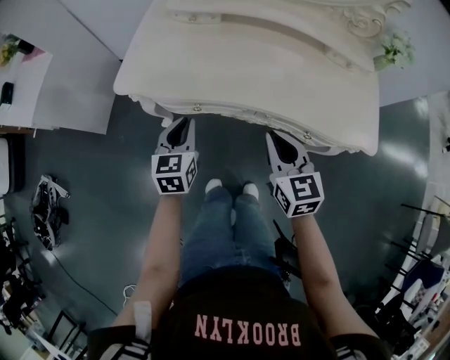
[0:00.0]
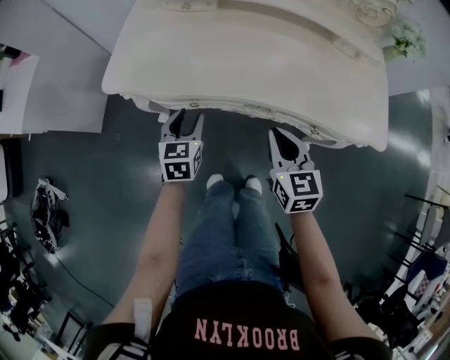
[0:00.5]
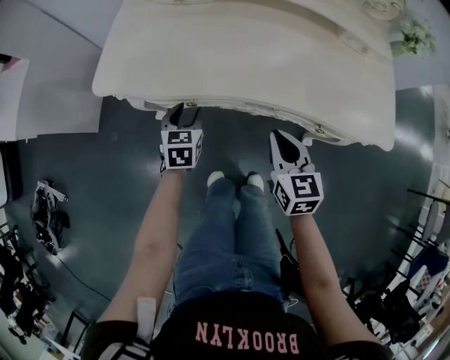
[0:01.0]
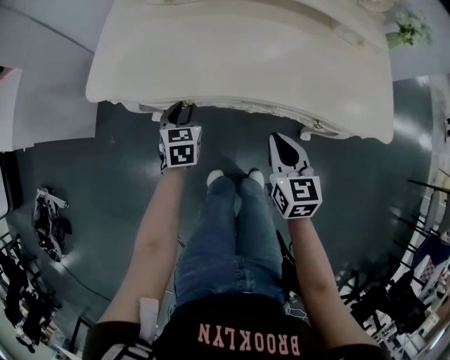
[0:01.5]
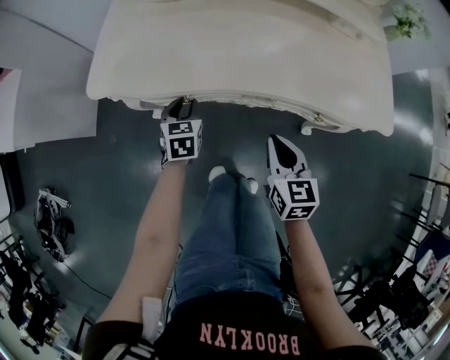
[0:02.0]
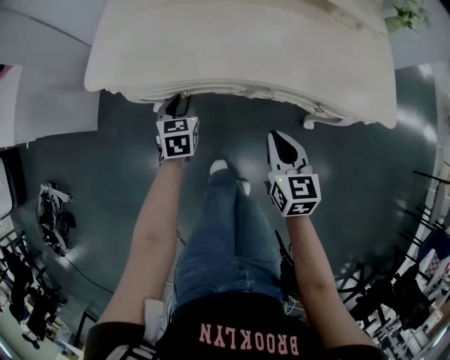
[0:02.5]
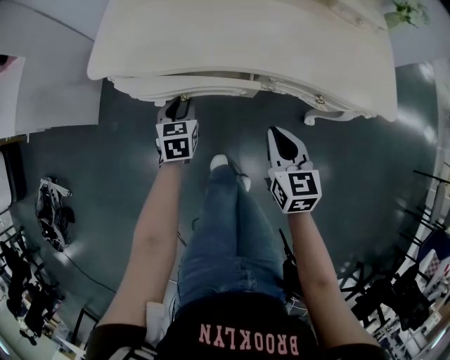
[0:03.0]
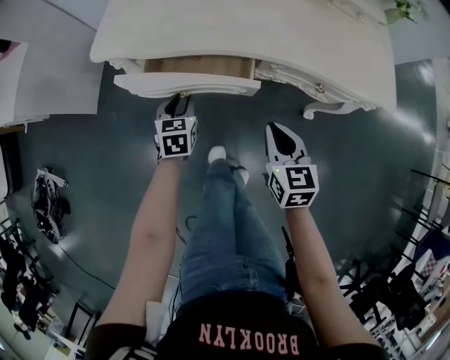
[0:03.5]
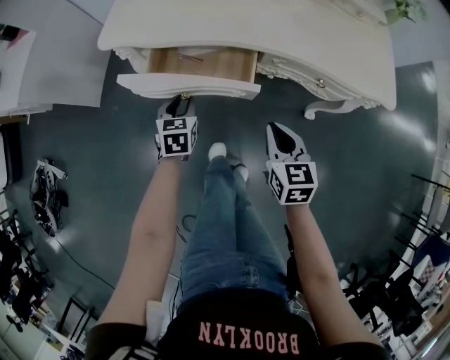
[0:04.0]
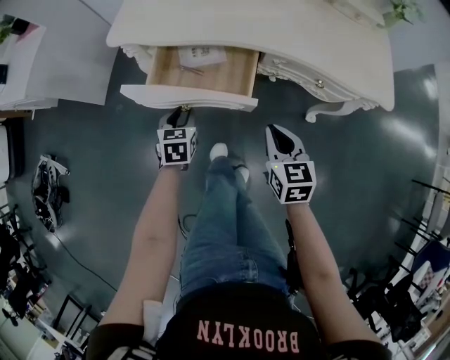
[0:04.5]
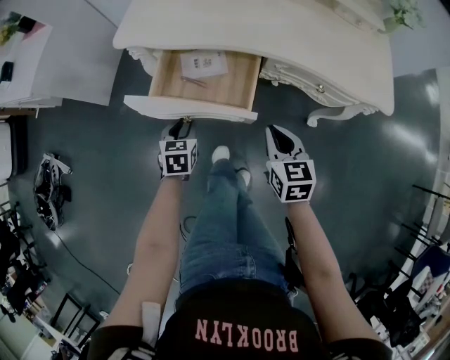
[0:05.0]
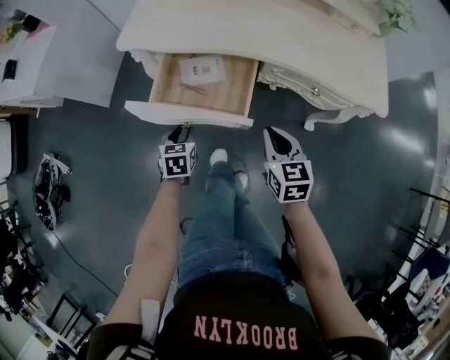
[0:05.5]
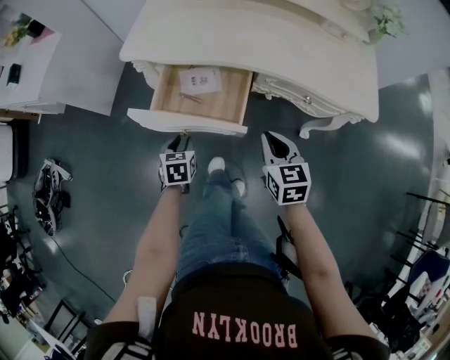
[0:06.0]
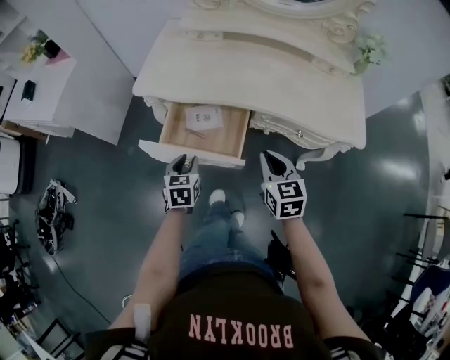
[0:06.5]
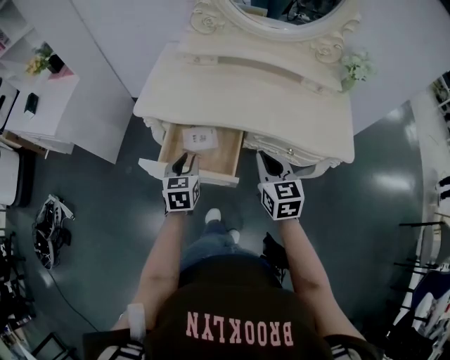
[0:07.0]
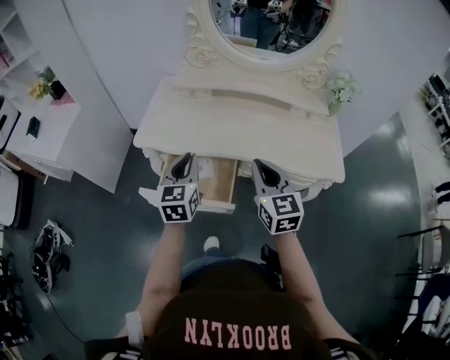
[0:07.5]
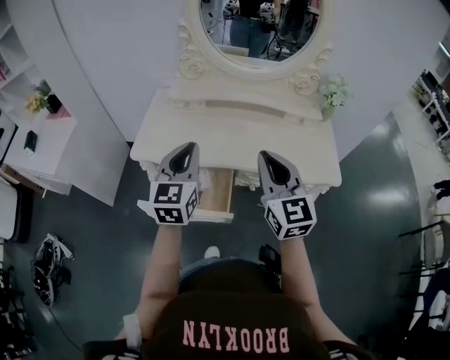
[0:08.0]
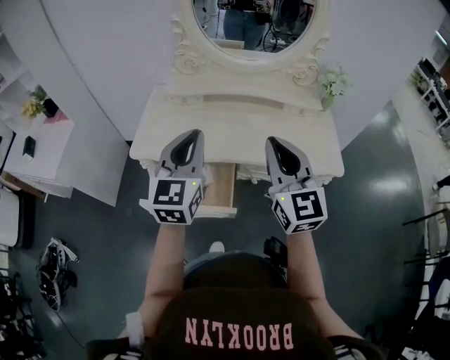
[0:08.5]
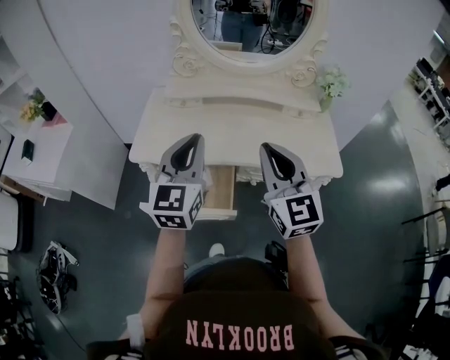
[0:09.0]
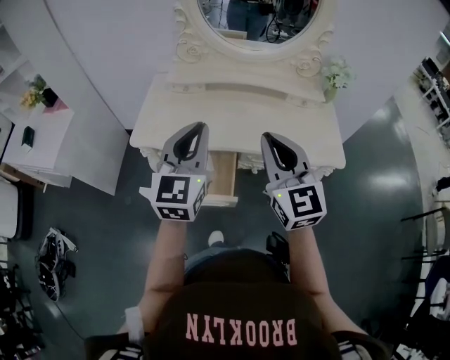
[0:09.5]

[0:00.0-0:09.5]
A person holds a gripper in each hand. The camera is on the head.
0:00.0 to 0:02.0: The left gripper is displaced downward and forward by about 15 cm, and opens up, while the right gripper heads downward, covering some 10 cm.
0:02.0 to 0:04.0: Both grippers travel together backward, some 10 cm.
0:04.0 to 0:05.5: The left gripper goes approximately 10 cm backward.
0:05.5 to 0:07.5: Both grippers move upward, approximately 25 cm. The right gripper turns by about 20 degrees; the left gripper tilts its fingers approximately 40 degrees upward.
0:07.5 to 0:09.5: Both grippers travel together upward, some 15 cm. The left gripper swivels roughly 20 degrees.

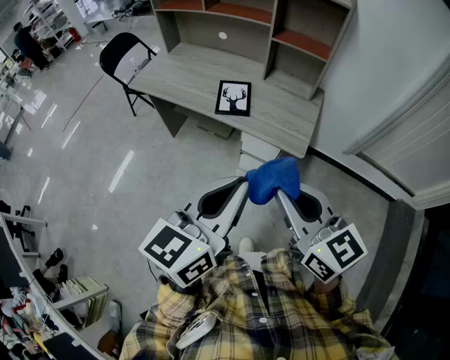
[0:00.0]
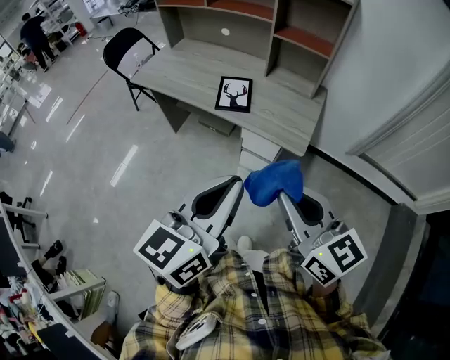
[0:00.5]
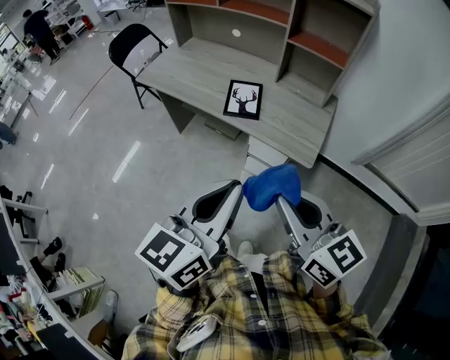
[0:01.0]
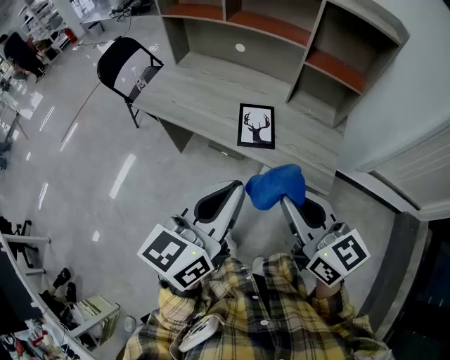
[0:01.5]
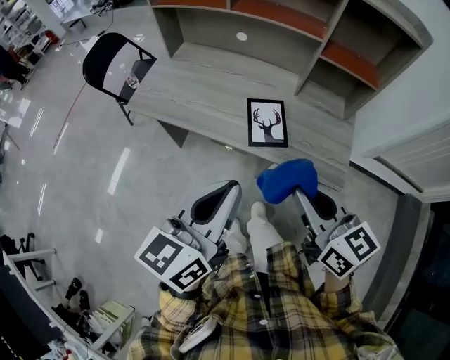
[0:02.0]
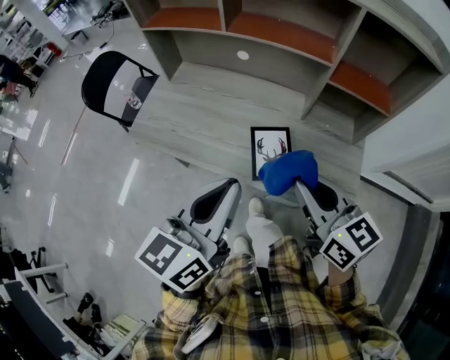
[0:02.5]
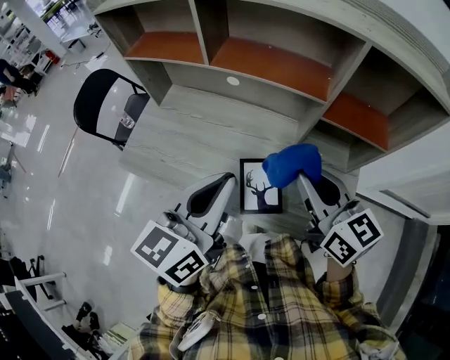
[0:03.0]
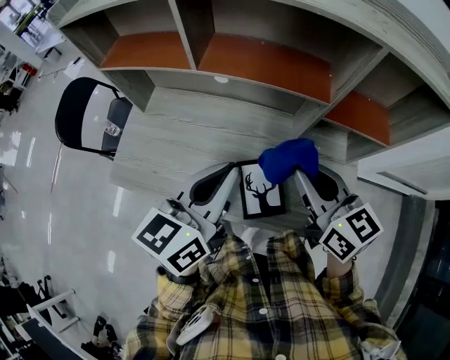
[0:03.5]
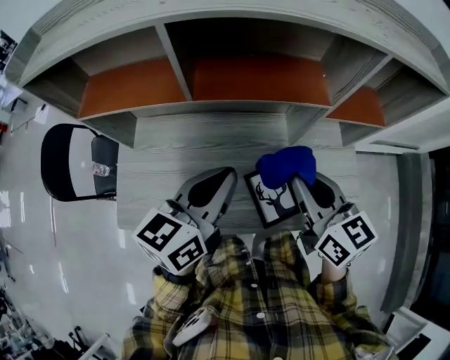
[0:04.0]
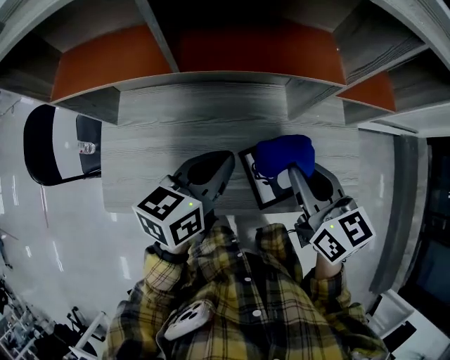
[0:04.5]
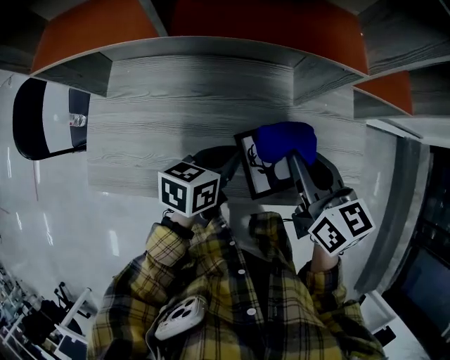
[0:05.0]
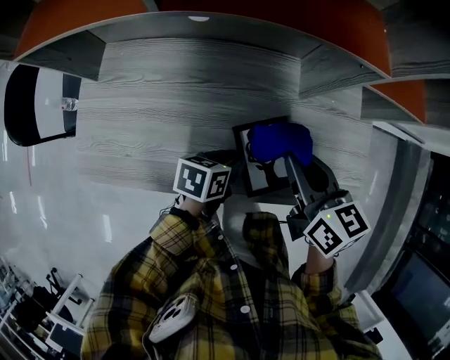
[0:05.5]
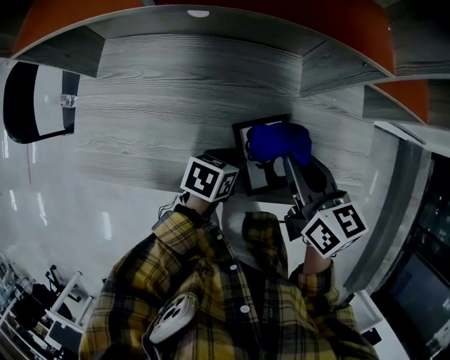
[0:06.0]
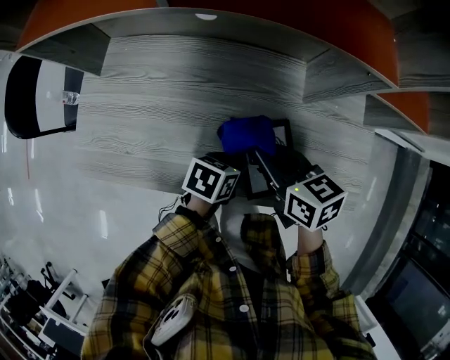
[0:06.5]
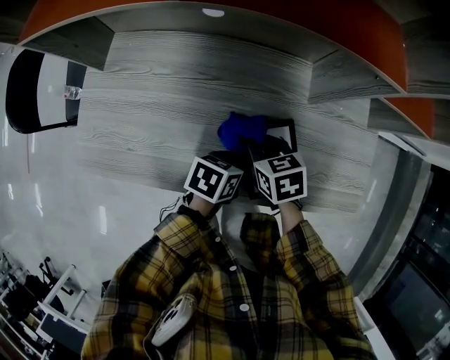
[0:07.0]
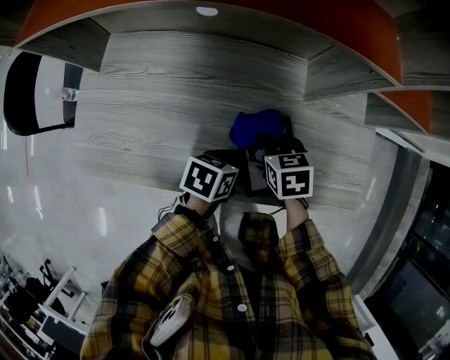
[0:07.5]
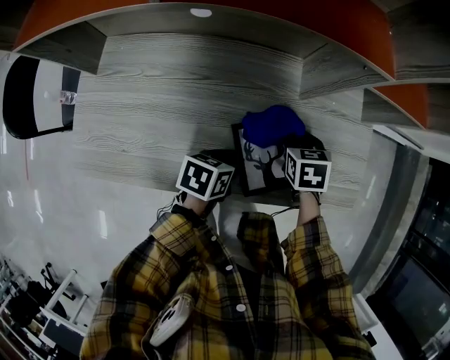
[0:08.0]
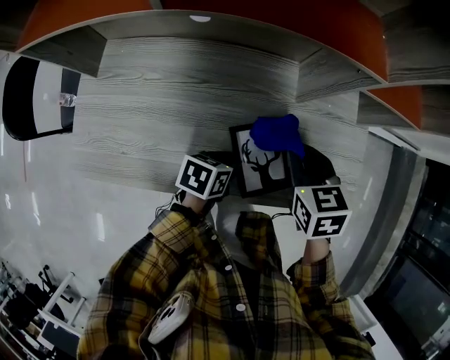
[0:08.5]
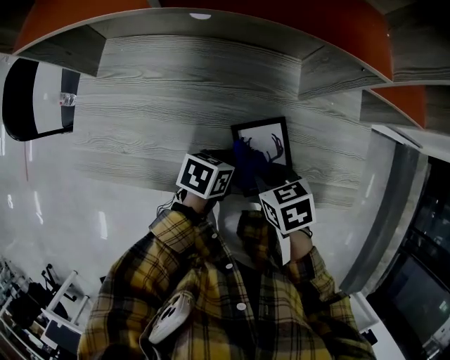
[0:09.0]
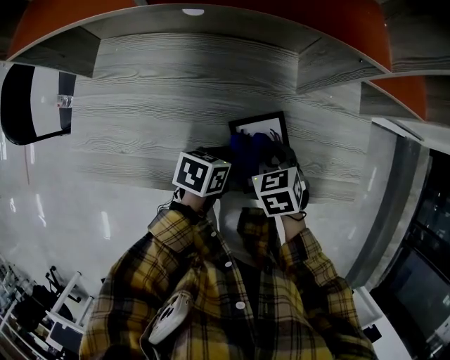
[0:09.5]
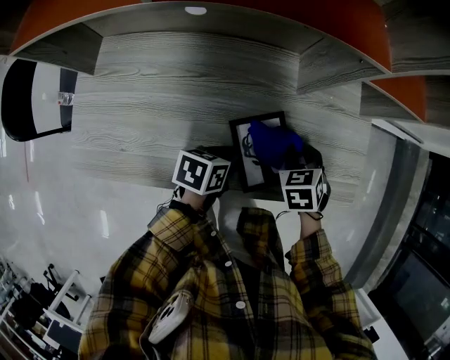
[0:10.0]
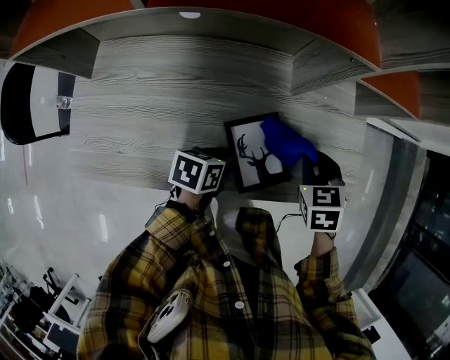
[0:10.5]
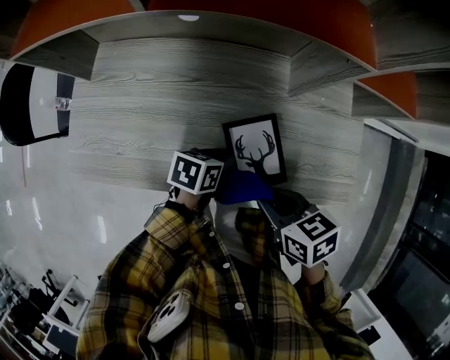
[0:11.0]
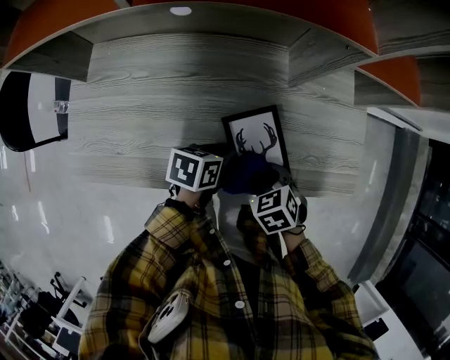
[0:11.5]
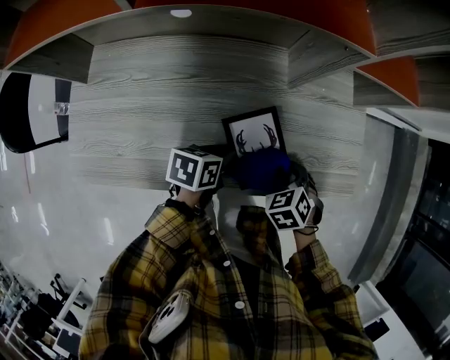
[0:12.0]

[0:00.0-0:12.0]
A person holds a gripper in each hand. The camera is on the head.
0:00.0 to 0:02.0: Both grippers move forward and to the left, some 30 cm.
0:02.0 to 0:04.0: The right gripper shifts by some 35 cm, and turns by roughly 20 degrees. Meanwhile the left gripper shifts by roughly 40 cm, and rotates some 30 degrees.
0:04.0 to 0:06.0: The left gripper heads downward, covering roughly 35 cm, points its fingers approximately 40 degrees further downward, and opens its fingers; the right gripper goes some 15 cm downward.
0:06.0 to 0:08.0: The right gripper heads downward, covering about 15 cm, and points its fingers some 30 degrees further downward.
0:08.0 to 0:10.0: The right gripper moves about 10 cm upward and comes back.
0:10.0 to 0:12.0: The right gripper reaches roughly 10 cm upward, then returns.

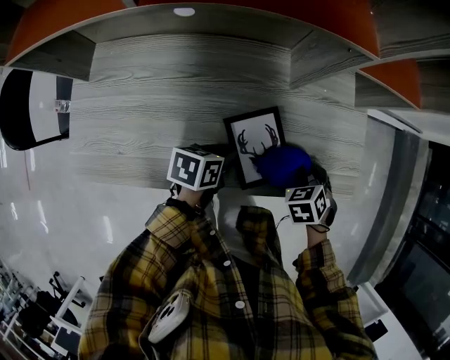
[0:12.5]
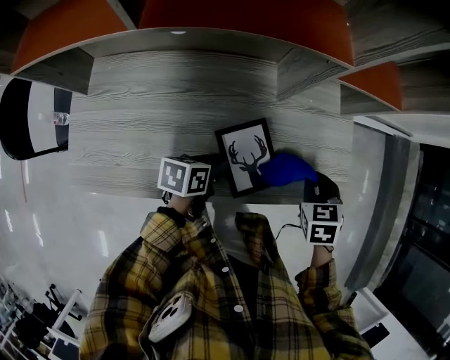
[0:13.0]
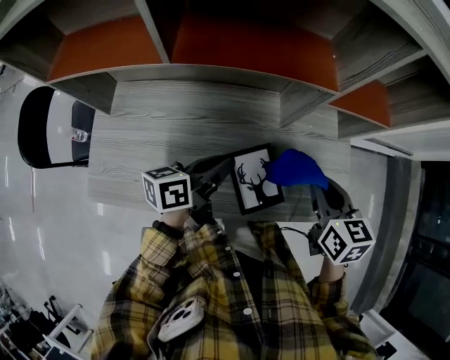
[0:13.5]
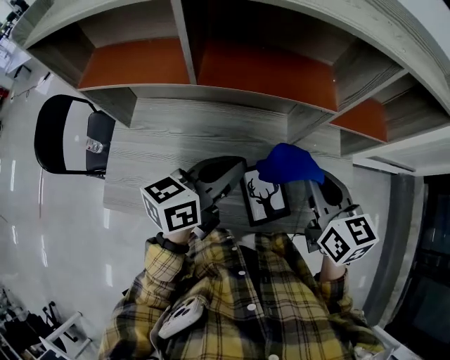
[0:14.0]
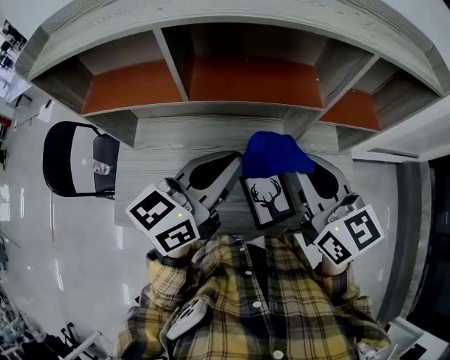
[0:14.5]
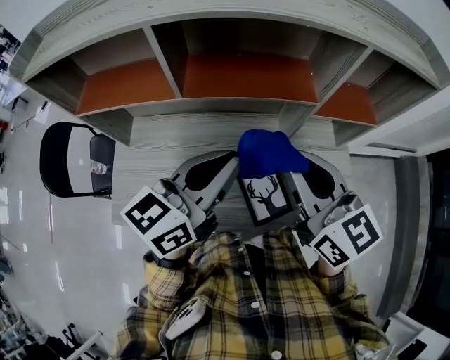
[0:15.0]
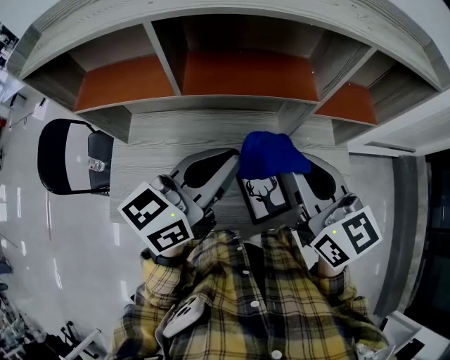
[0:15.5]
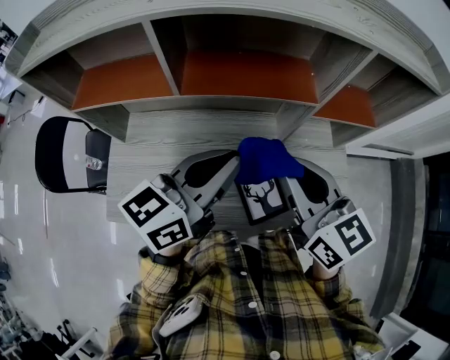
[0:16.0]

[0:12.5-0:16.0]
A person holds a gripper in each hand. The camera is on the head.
0:12.5 to 0:14.5: Both grippers travel together upward, about 35 cm. The right gripper tips its fingers upward by approximately 60 degrees. Meanwhile the left gripper angles its fingers upward, by approximately 40 degrees.
0:14.5 to 0:16.0: There are only small adjustments of the grippers.

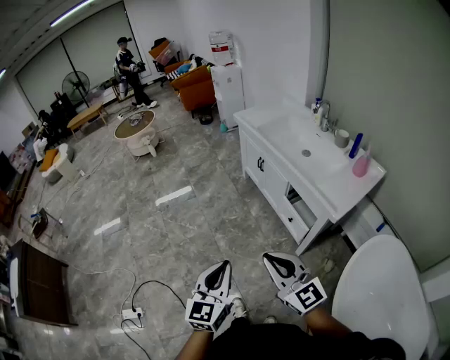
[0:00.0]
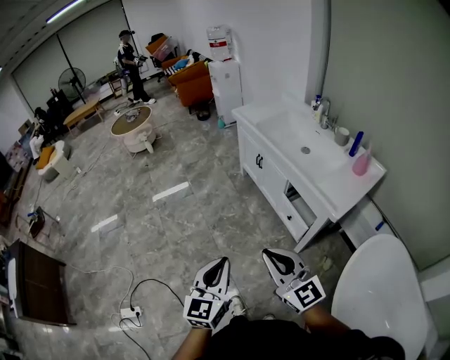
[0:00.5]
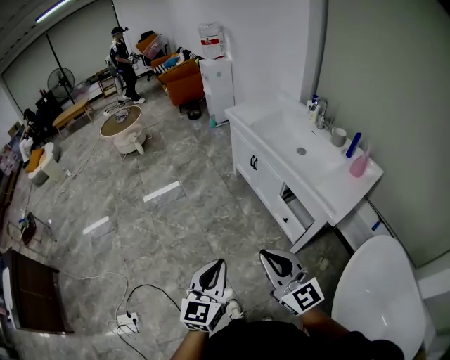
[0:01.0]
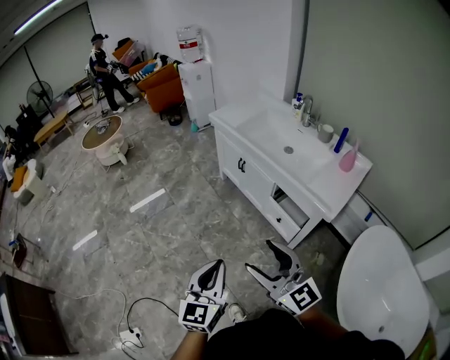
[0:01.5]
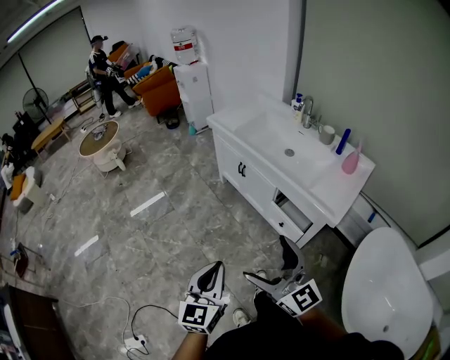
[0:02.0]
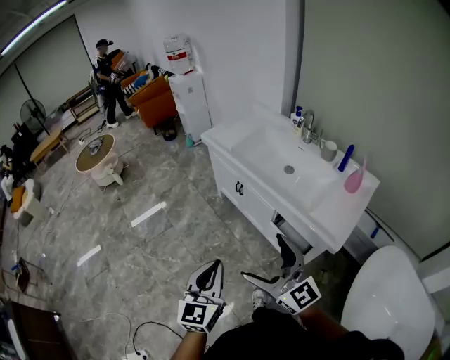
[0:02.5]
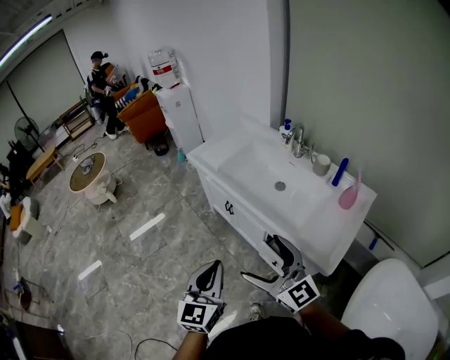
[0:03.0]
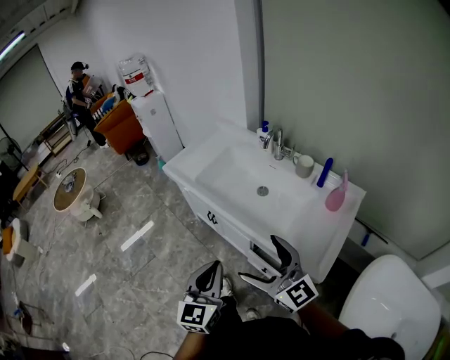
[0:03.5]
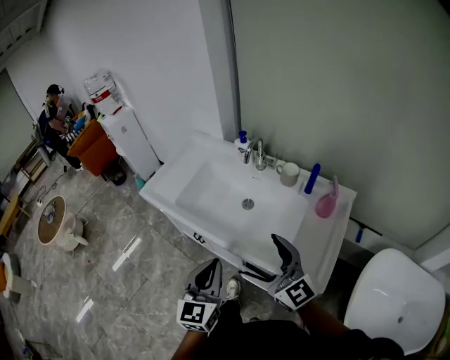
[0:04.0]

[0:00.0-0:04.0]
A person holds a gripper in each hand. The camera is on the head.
0:00.0 to 0:02.0: The grippers both shift forward by about 15 cm. The right gripper opens up.
0:02.0 to 0:04.0: The two grippers travel together, forward and to the right, approximately 40 cm.
